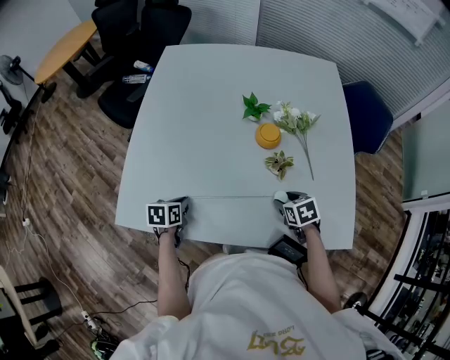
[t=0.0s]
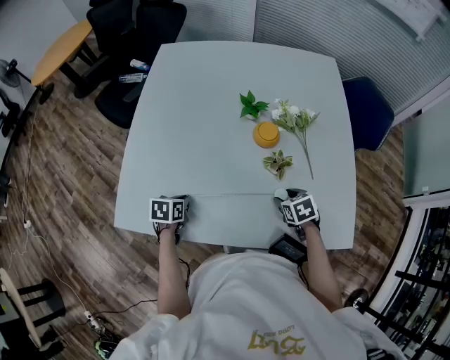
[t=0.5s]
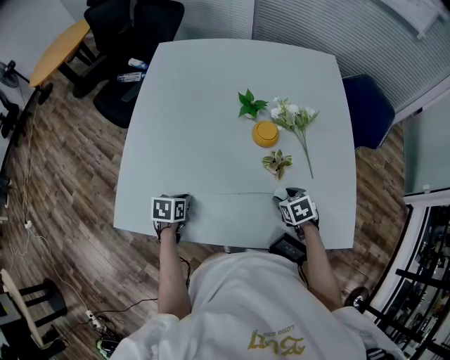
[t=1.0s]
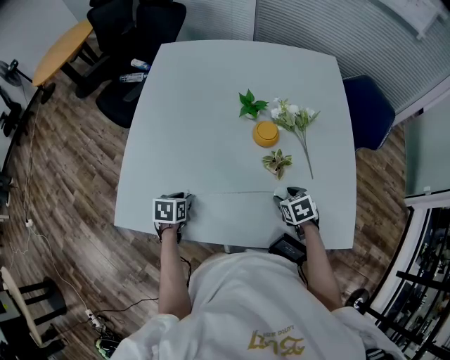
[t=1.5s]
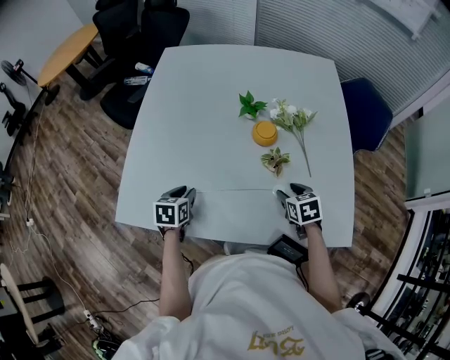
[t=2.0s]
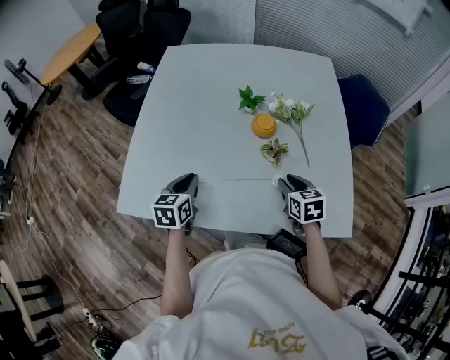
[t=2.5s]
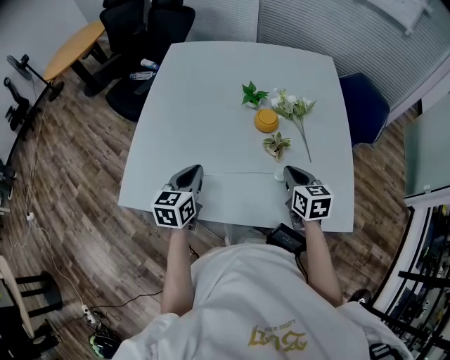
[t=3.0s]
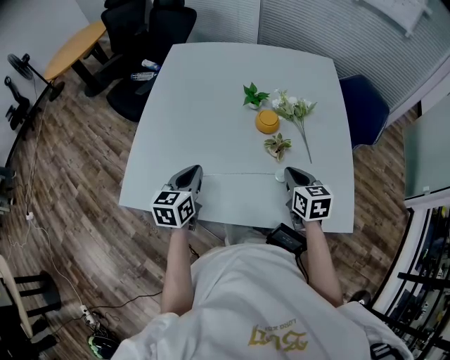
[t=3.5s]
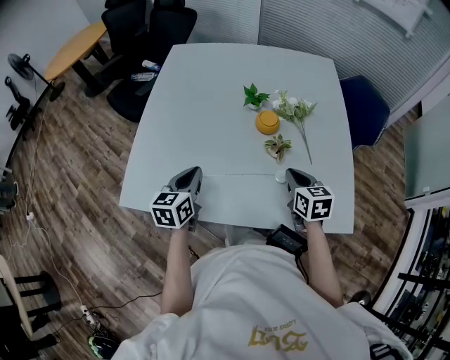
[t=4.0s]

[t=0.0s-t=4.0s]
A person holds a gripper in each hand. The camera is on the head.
t=0.0s to t=2.0s: The left gripper opens.
t=2.0s to t=4.0s: Both grippers travel together upward, about 10 cm. The right gripper rotates roughly 20 degrees, and closes. The left gripper turns by approximately 30 degrees, and closes its fingers.

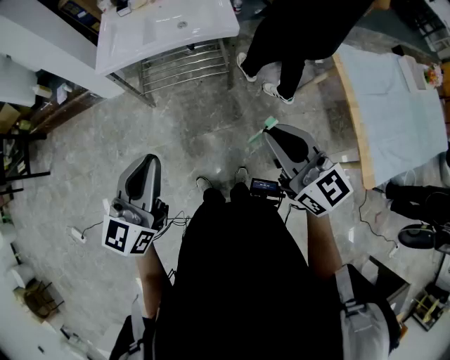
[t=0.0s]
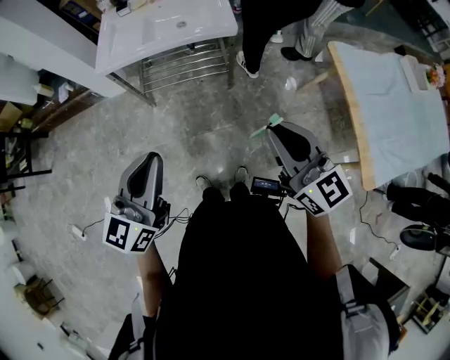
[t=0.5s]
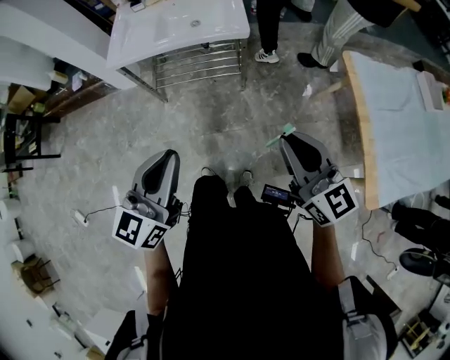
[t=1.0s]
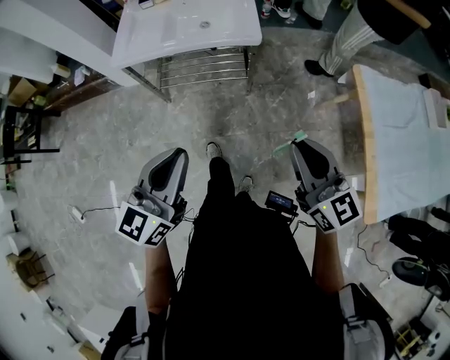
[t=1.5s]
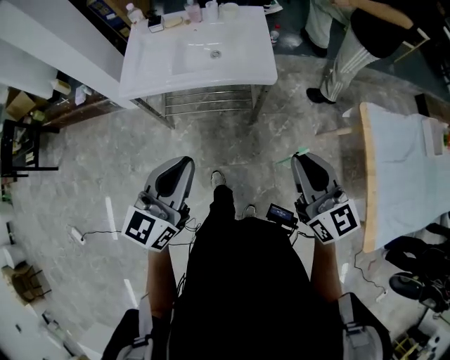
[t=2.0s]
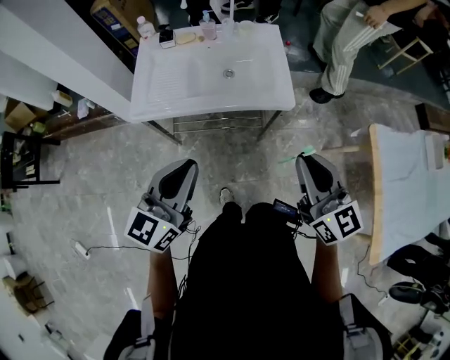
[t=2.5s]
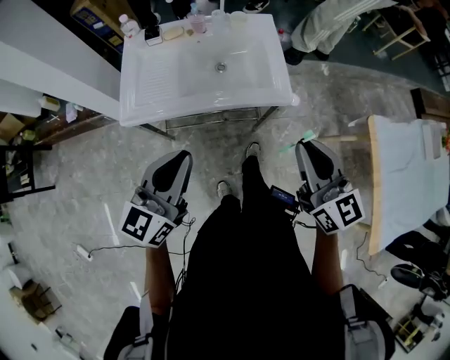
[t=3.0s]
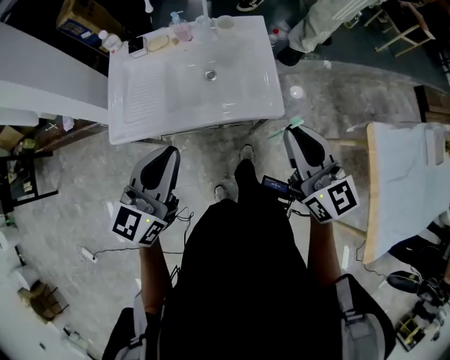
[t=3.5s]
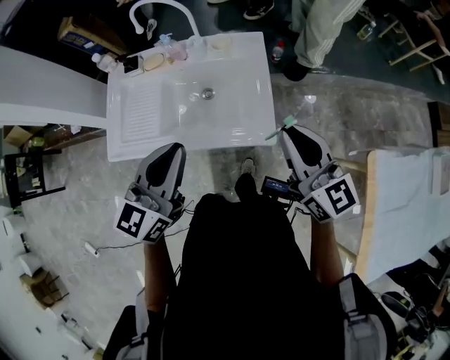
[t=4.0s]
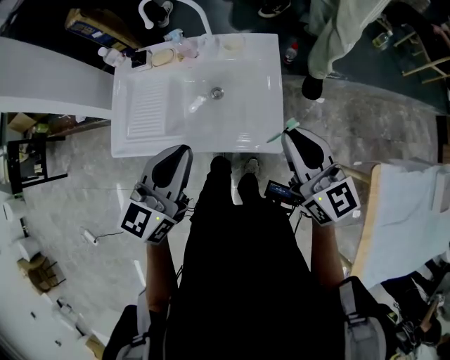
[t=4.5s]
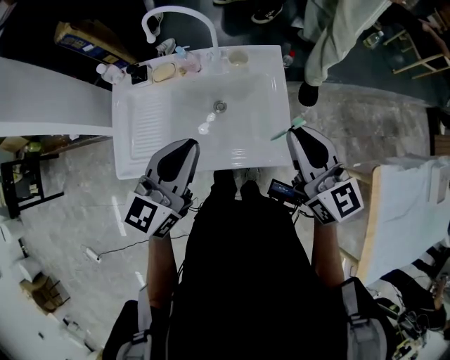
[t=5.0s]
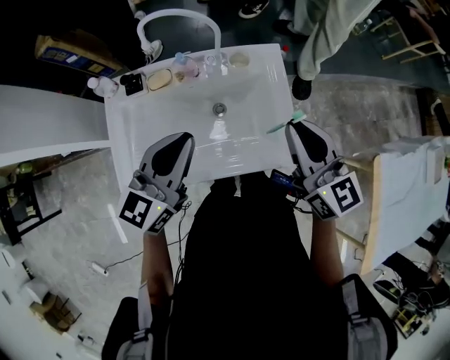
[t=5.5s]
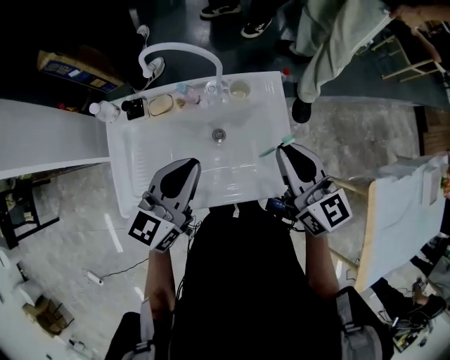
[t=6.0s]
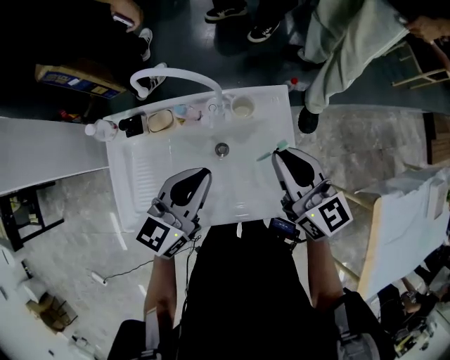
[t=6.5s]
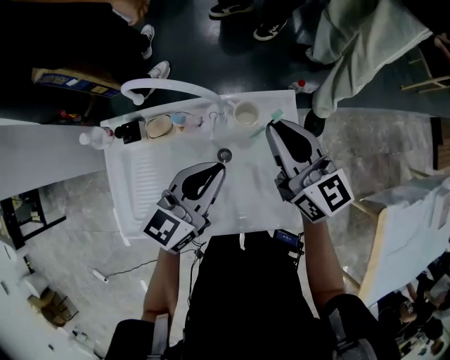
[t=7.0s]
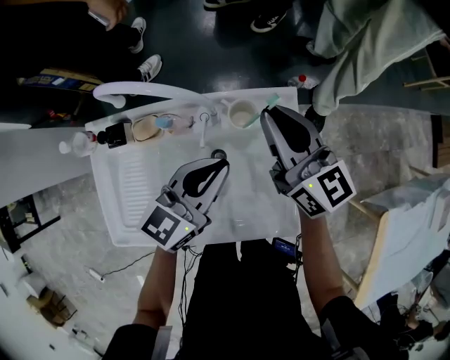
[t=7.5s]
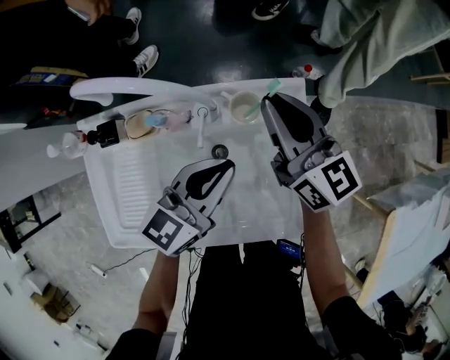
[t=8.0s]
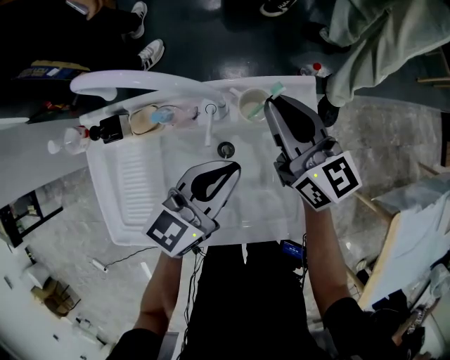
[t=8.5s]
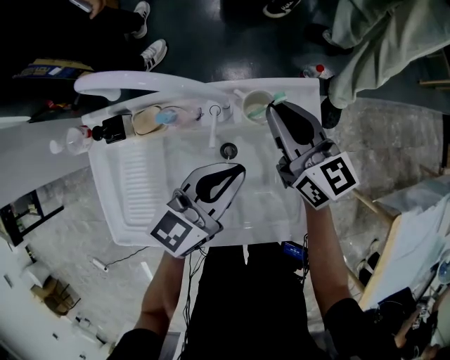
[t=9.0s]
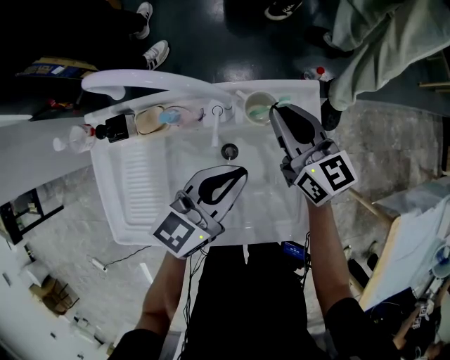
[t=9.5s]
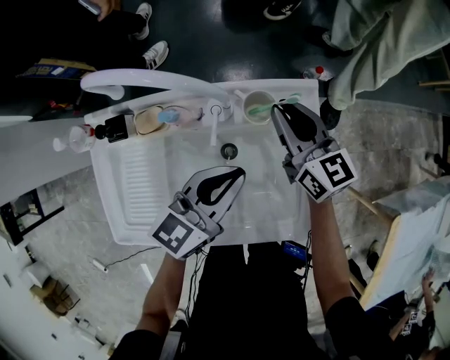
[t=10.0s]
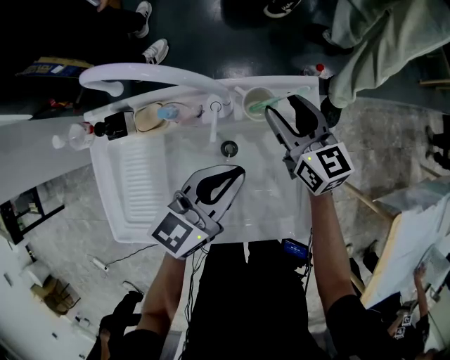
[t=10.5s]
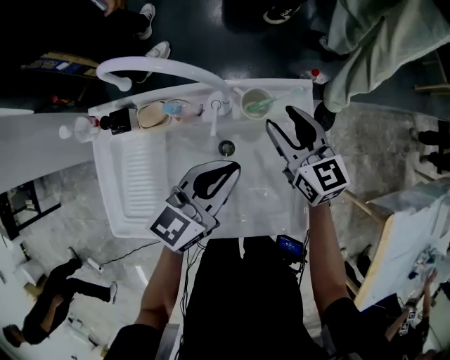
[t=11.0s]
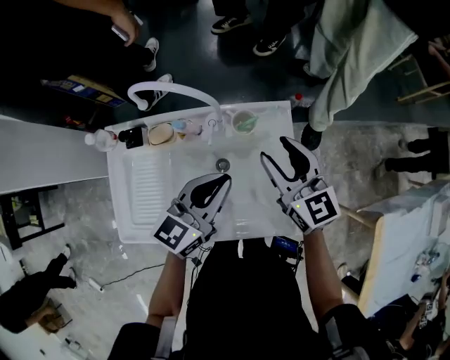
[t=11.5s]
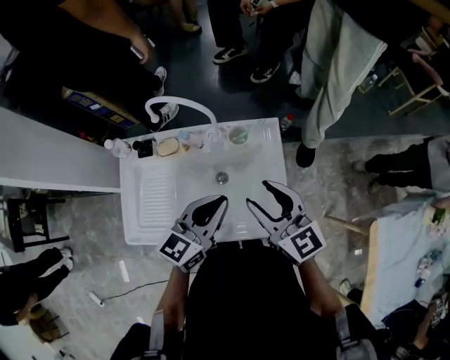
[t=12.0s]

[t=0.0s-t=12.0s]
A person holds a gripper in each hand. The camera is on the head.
t=0.0s to t=2.0s: Both grippers travel together forward, about 15 cm.
t=2.0s to t=4.0s: Both grippers travel together forward, some 35 cm.
t=4.0s to t=6.0s: The grippers both shift forward and to the left by about 20 cm.
t=6.0s to t=8.0s: The left gripper shifts approximately 20 cm downward, forward and to the right. Meanwhile the right gripper moves forward and downward, approximately 25 cm.
t=8.0s to t=10.0s: The right gripper is displaced downward by about 10 cm.
t=10.0s to t=12.0s: The right gripper goes about 25 cm backward and upward, and opens; the left gripper goes about 15 cm upward and backward.

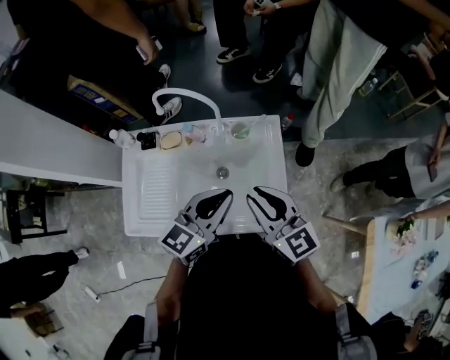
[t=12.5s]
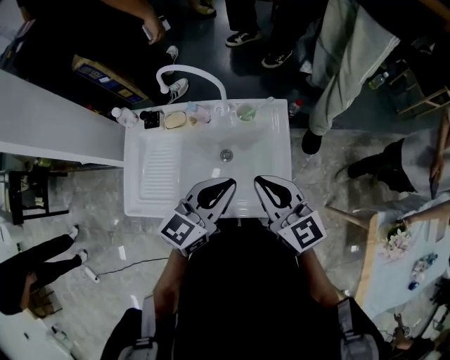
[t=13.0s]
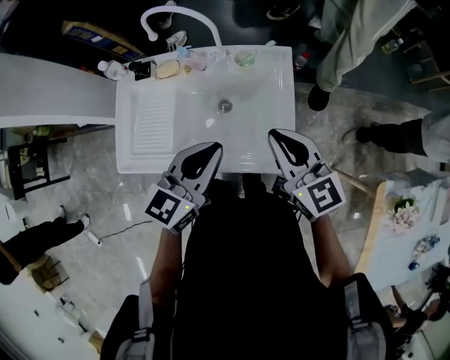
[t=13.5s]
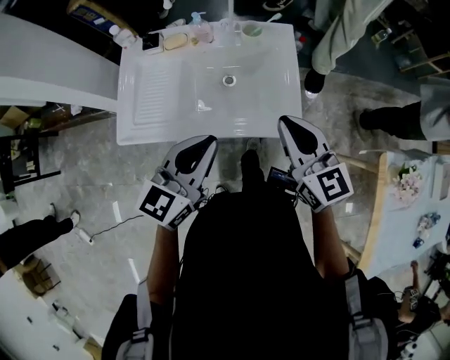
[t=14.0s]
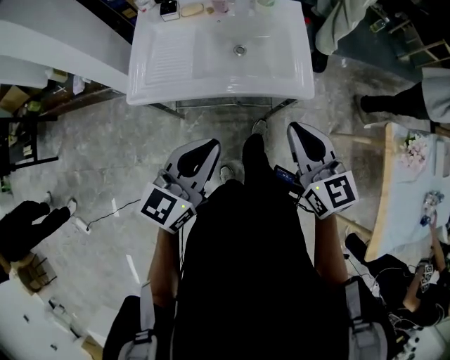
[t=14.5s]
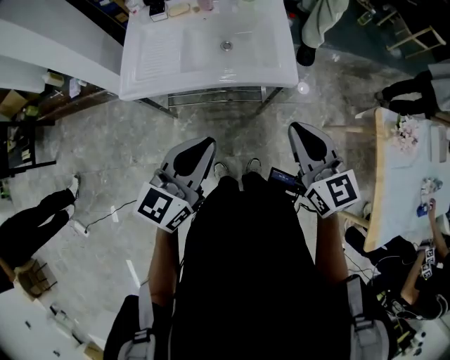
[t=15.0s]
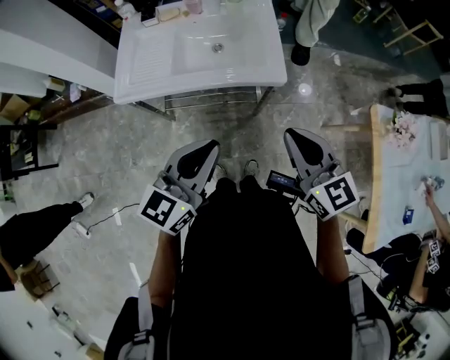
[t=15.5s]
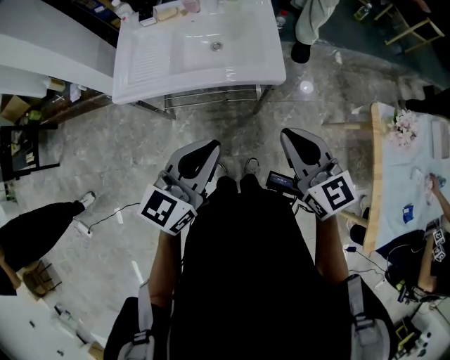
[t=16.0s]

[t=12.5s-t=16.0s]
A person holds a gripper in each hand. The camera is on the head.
t=12.5s to t=14.5s: Both grippers move backward, about 30 cm.
t=14.5s to t=16.0s: Both grippers move to the right and backward, some 10 cm.

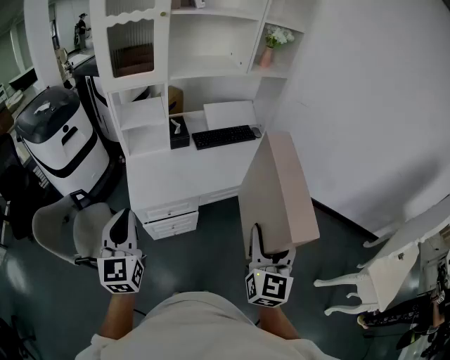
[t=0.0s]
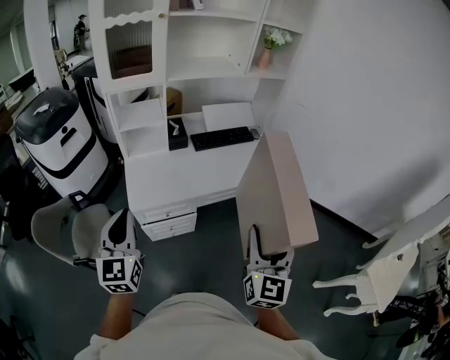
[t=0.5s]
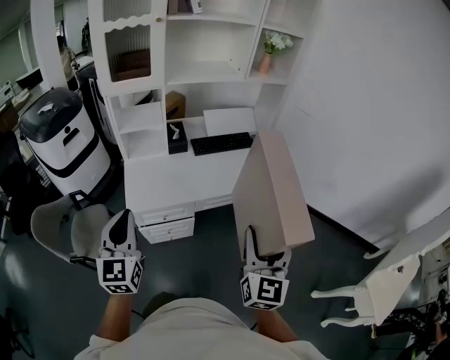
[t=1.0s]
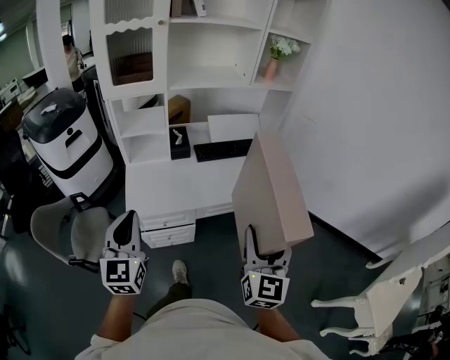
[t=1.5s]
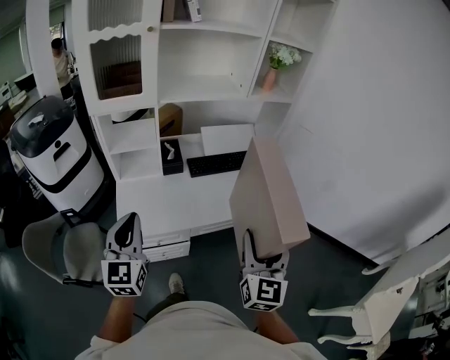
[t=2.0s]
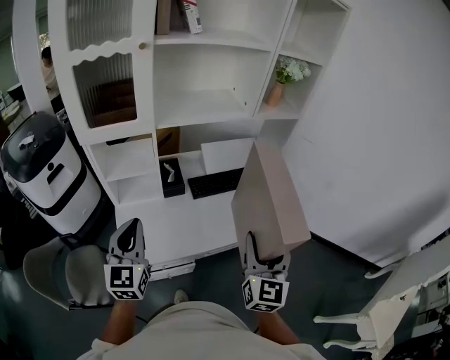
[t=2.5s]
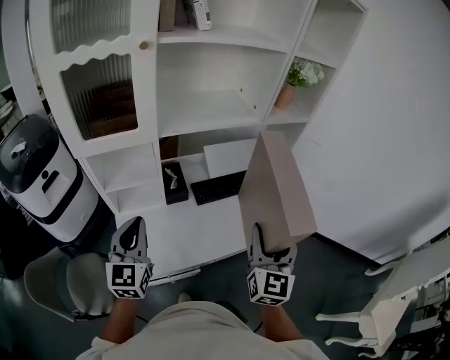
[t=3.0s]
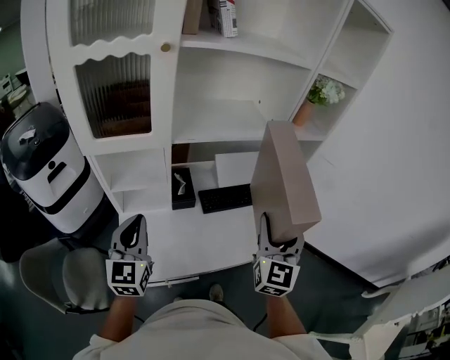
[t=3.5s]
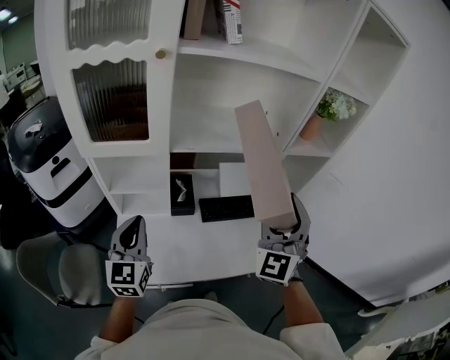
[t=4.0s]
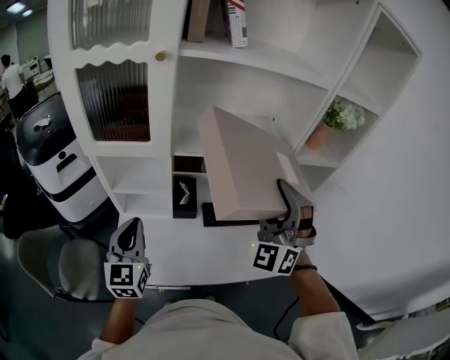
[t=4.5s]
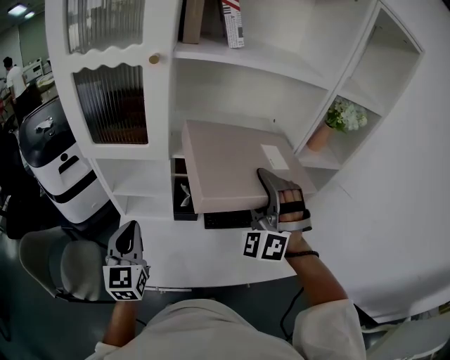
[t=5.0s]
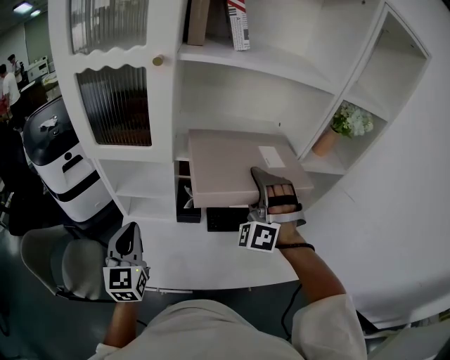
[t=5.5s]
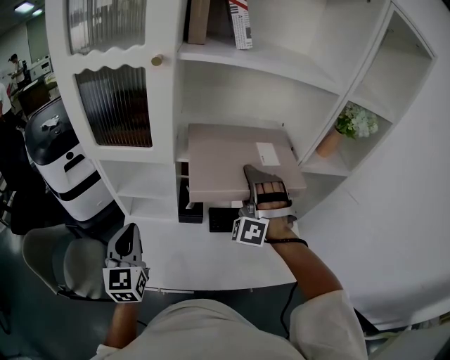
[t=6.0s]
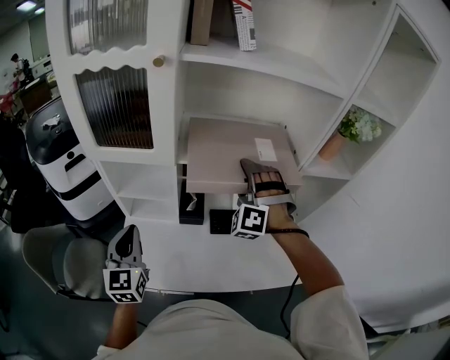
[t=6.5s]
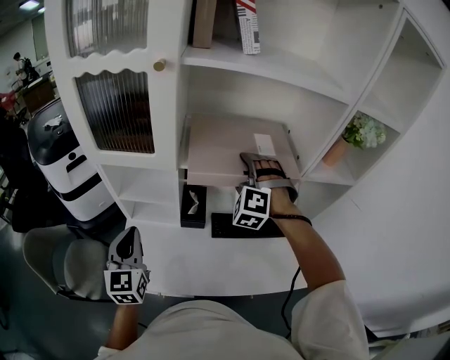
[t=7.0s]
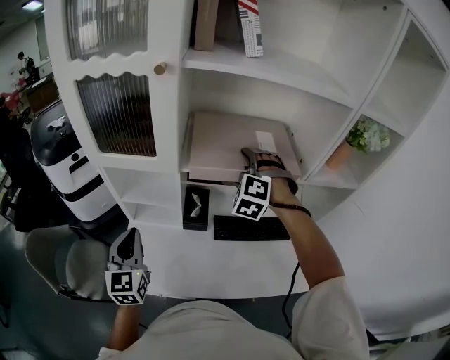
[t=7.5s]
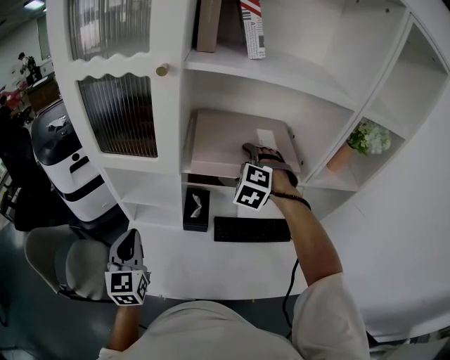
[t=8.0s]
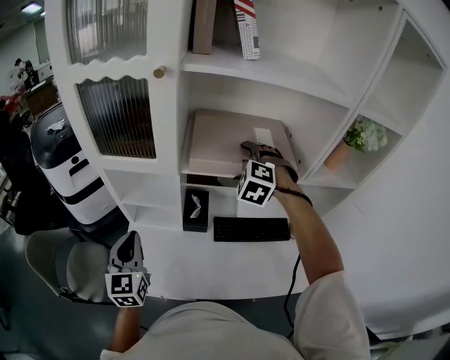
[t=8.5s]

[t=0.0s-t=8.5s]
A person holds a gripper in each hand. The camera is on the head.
t=0.0s to t=2.0s: Both grippers move forward, some 15 cm.
t=2.0s to t=4.0s: The grippers both shift forward by roughly 30 cm. The right gripper rotates about 40 degrees.
t=4.0s to t=6.5s: The right gripper goes about 20 cm forward and downward, and rolls counterclockwise, seen from behind, by some 50 degrees.
t=6.5s to t=8.5s: The right gripper goes roughly 5 cm forward, and swivels about 30 degrees.
